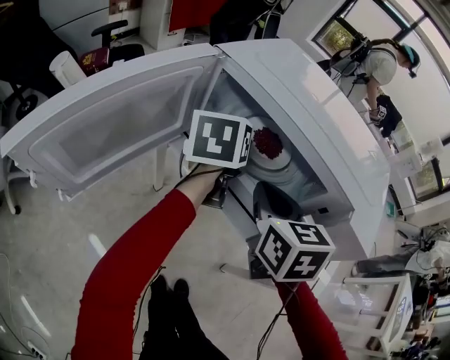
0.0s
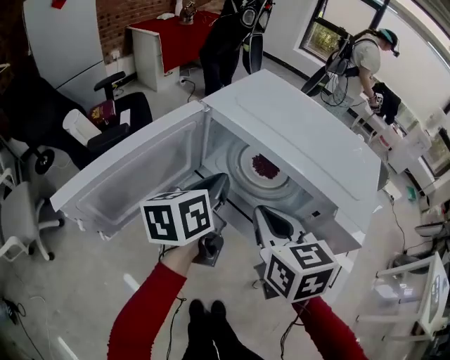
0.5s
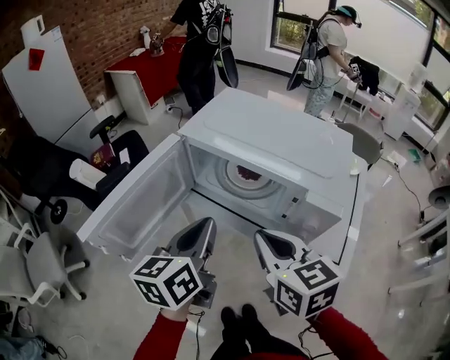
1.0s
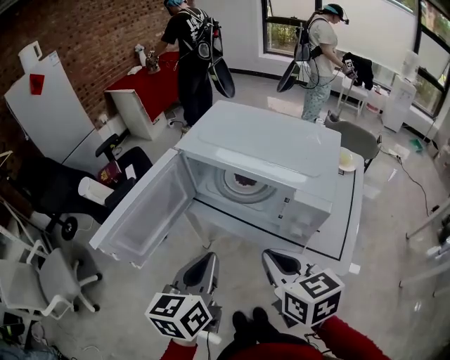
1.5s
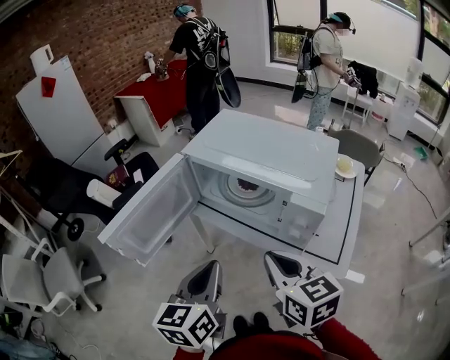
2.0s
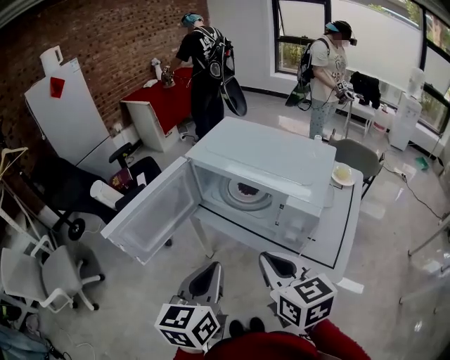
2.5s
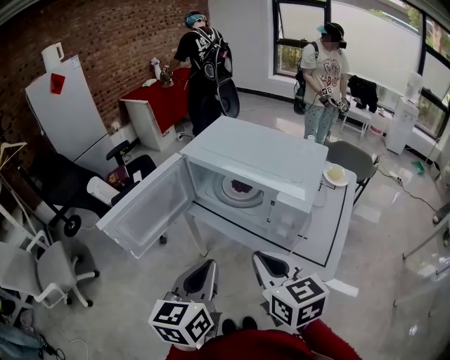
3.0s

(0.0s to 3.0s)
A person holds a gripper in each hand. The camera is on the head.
0.0s - 1.5s: The left gripper shifts approximately 25 cm backward. The right gripper goes roughly 20 cm backward and upward.
1.5s - 3.0s: The left gripper goes some 5 cm backward.

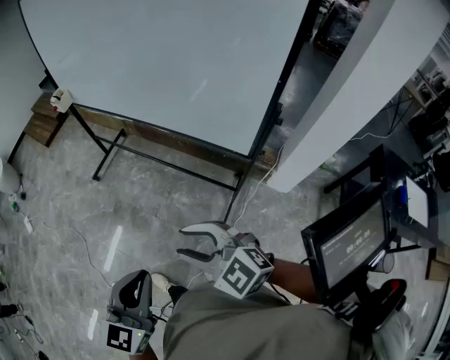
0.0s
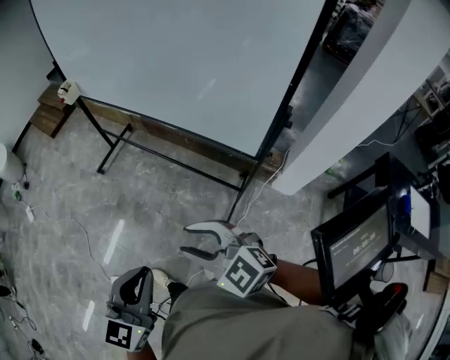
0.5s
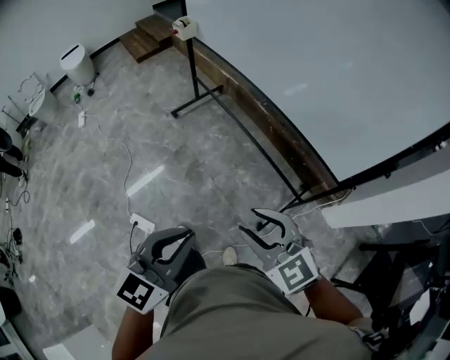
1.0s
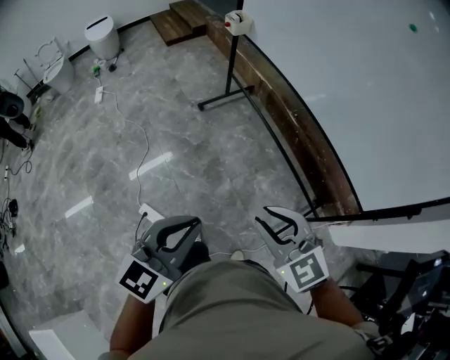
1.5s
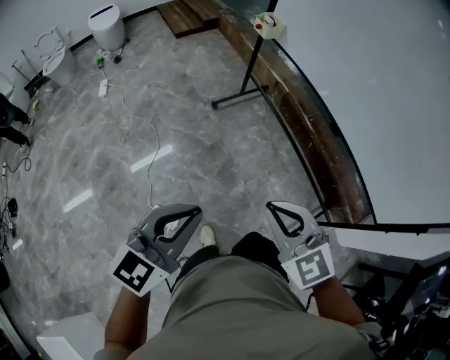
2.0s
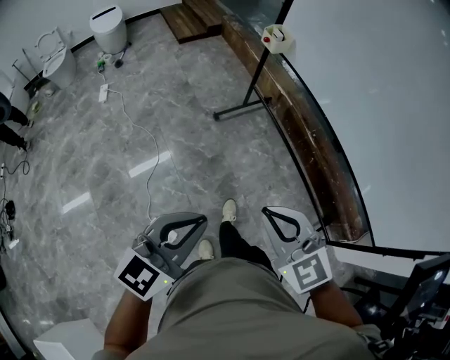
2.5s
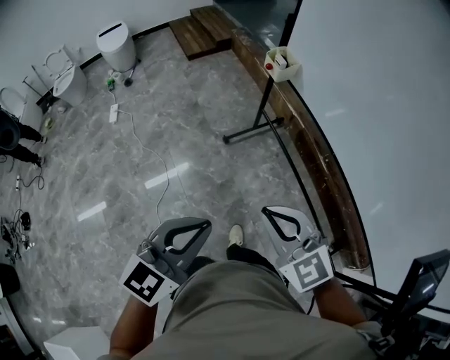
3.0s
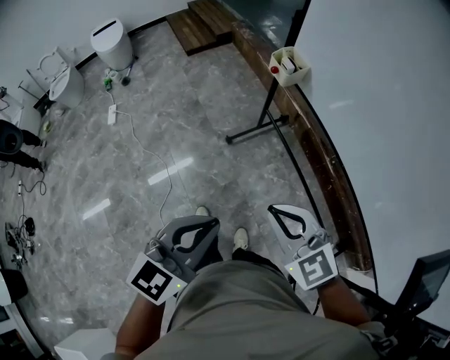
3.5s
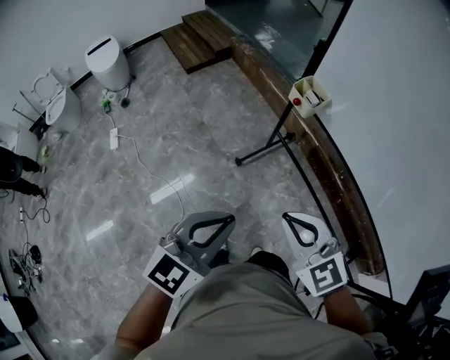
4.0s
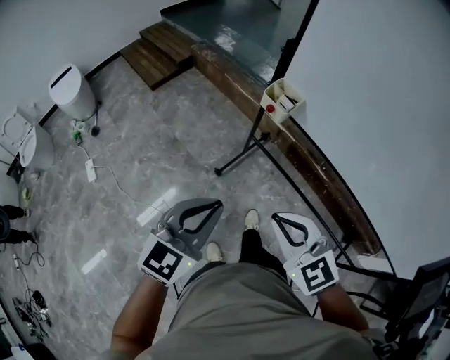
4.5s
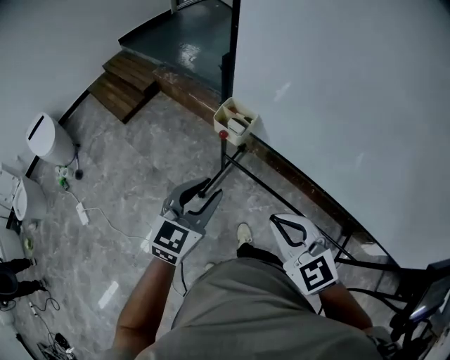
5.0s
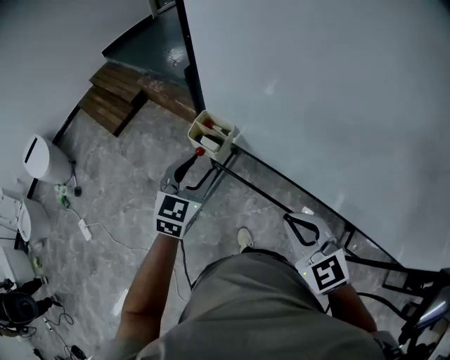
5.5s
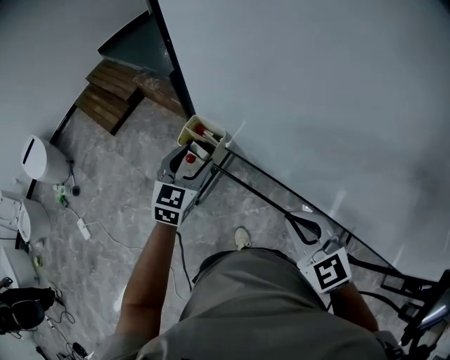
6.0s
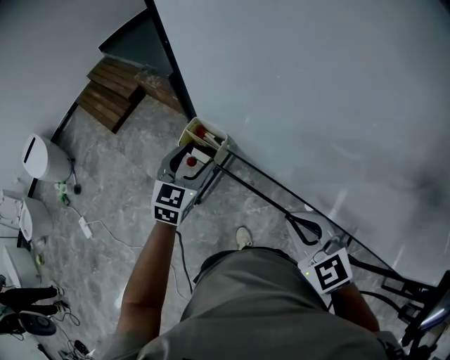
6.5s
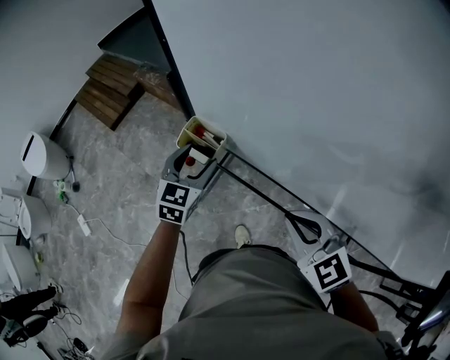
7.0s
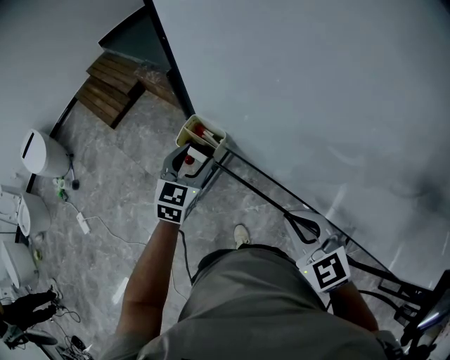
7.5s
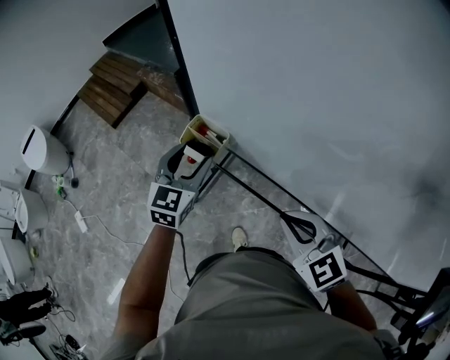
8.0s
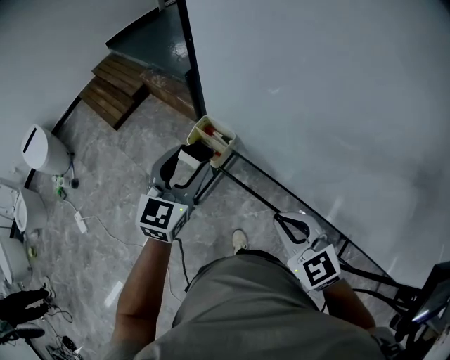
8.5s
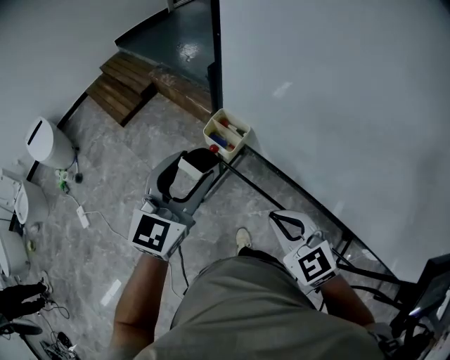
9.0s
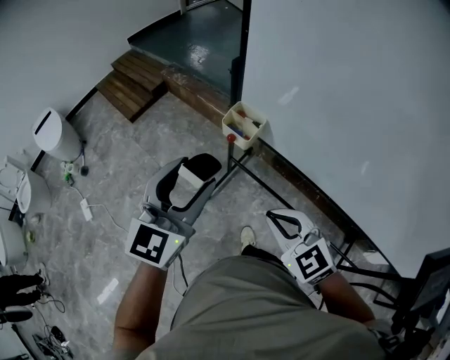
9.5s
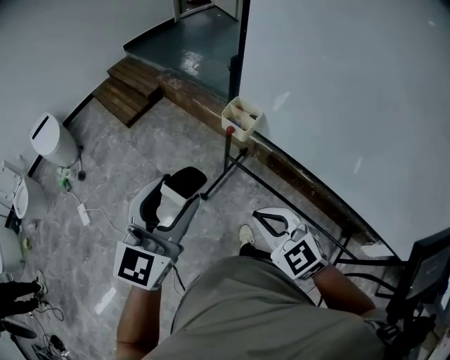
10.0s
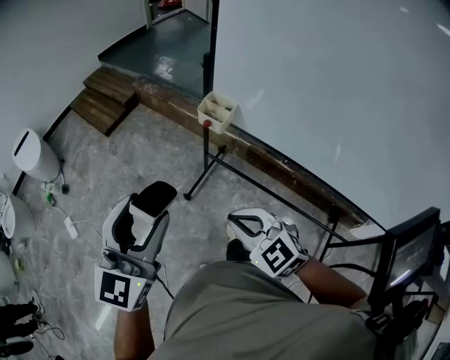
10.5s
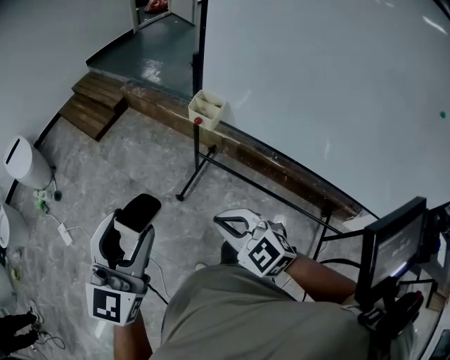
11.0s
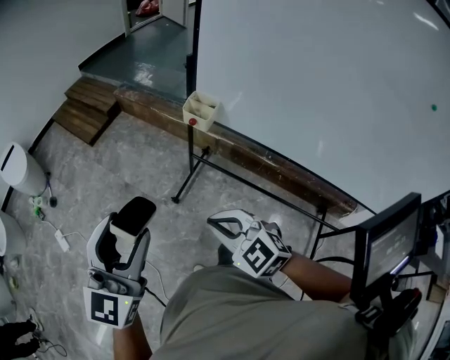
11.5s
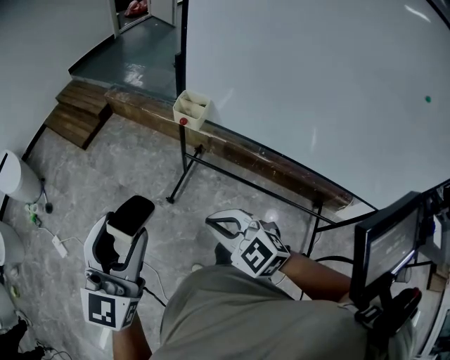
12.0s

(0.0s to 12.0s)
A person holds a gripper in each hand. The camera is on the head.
0.0s - 2.0s: The right gripper moves to the left and forward, some 35 cm, and closes its fingers; the left gripper shifts approximately 35 cm to the left.
2.0s - 4.0s: The pair of grippers is taken forward, some 40 cm.
4.0s - 6.0s: The right gripper shifts roughly 30 cm to the right and forward, and turns by some 20 degrees, while the left gripper goes some 40 cm forward, and opens its fingers.
6.0s - 8.0s: The grippers stay close to where they were, moving slightly.
8.0s - 10.0s: The left gripper goes approximately 35 cm backward, to the left and upward. The right gripper travels to the left and backward by roughly 25 cm.
10.0s - 12.0s: The left gripper is displaced backward and to the left by about 10 cm, while the right gripper heads to the left and backward, covering some 10 cm.

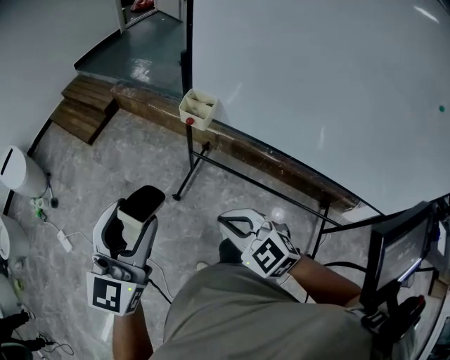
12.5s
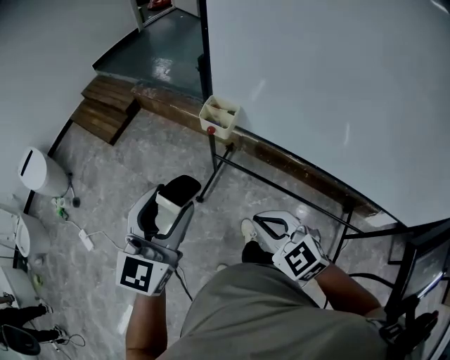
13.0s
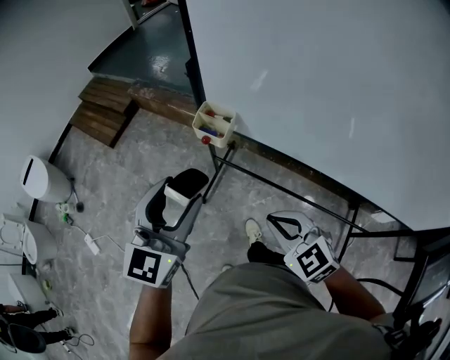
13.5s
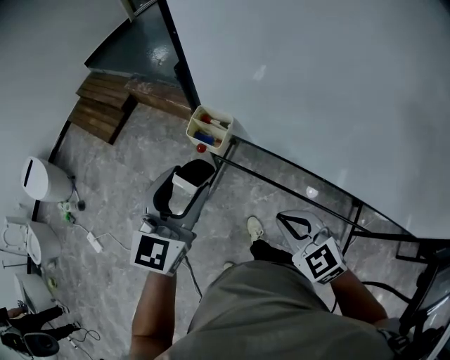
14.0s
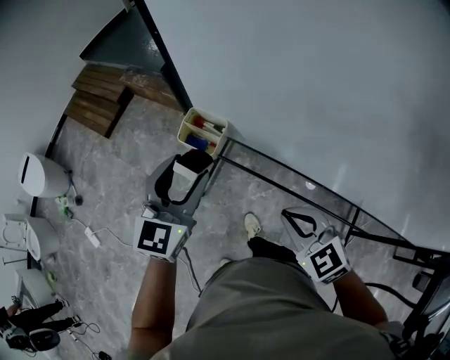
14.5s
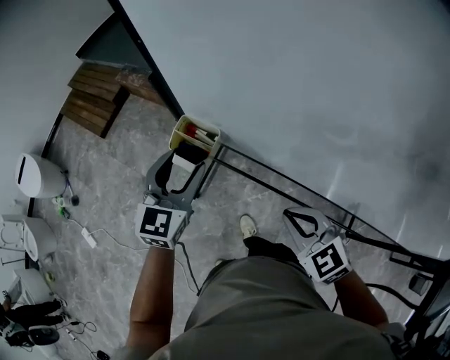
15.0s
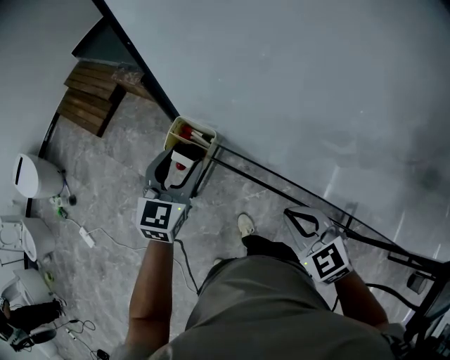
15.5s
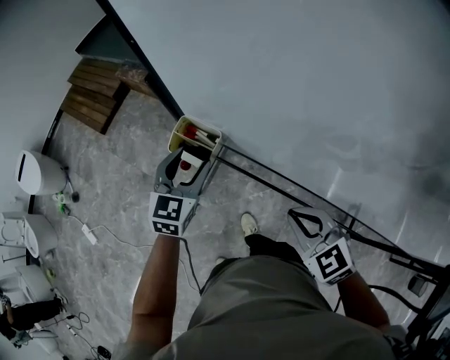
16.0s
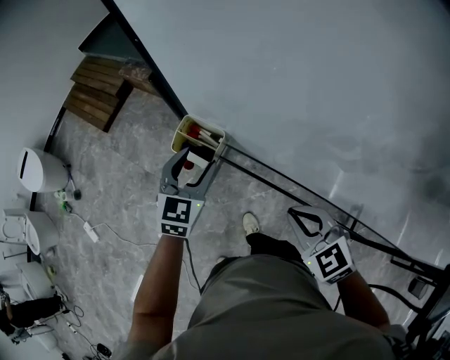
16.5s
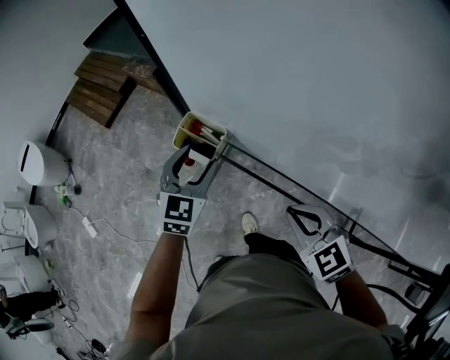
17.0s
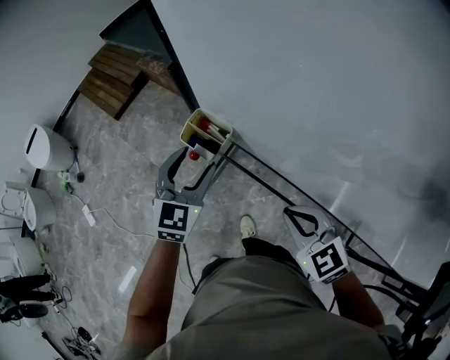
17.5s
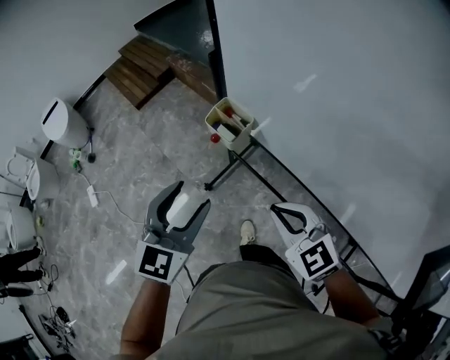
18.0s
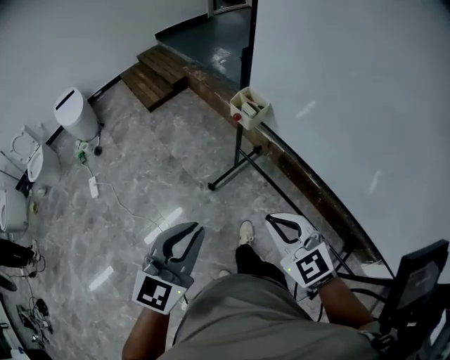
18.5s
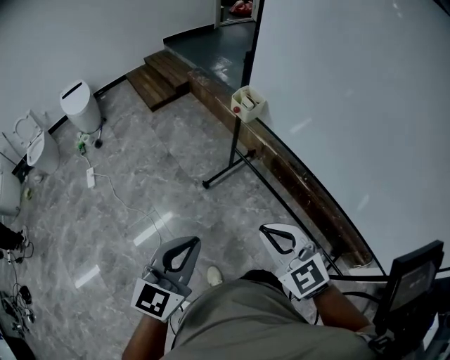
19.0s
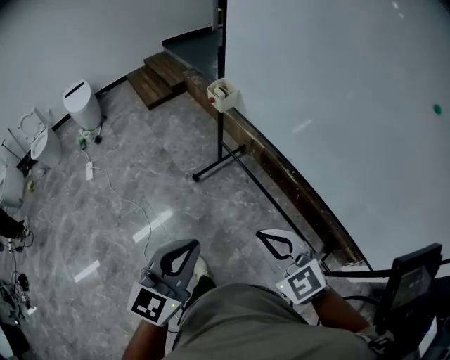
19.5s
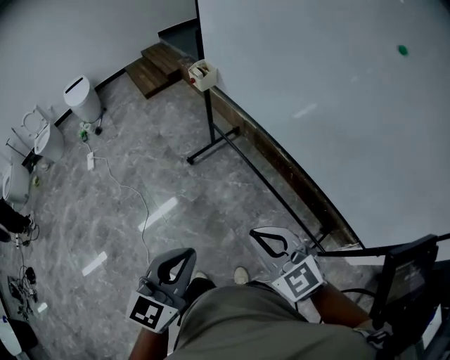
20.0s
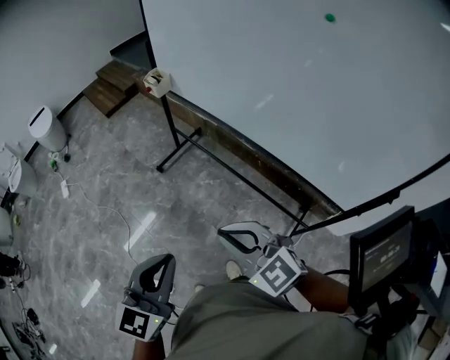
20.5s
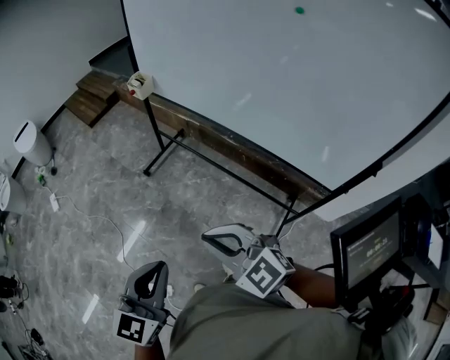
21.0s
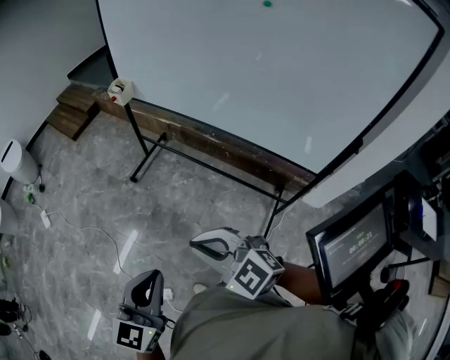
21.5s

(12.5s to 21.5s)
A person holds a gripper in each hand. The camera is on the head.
12.5s - 14.5s: The right gripper moves to the right and forward, some 25 cm. Meanwhile the left gripper shifts roughly 35 cm forward and to the right.
14.5s - 17.0s: The right gripper changes place by some 5 cm; the left gripper travels downward and forward by about 10 cm.
17.0s - 19.5s: The pair of grippers is taken backward, roughly 50 cm. The right gripper swivels about 30 degrees. The left gripper swivels approximately 20 degrees, and closes.
19.5s - 21.5s: The grippers both shift backward by approximately 20 cm.

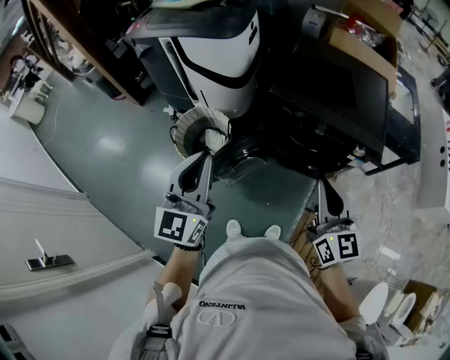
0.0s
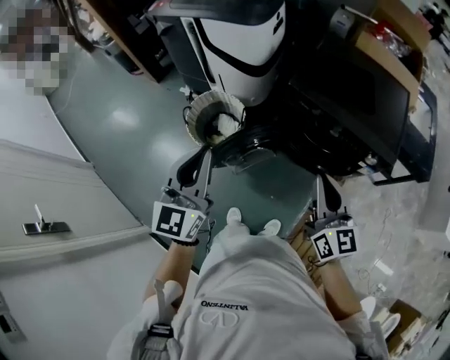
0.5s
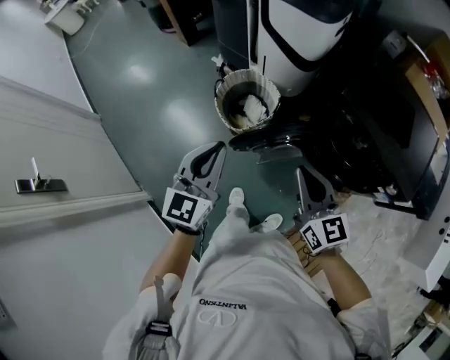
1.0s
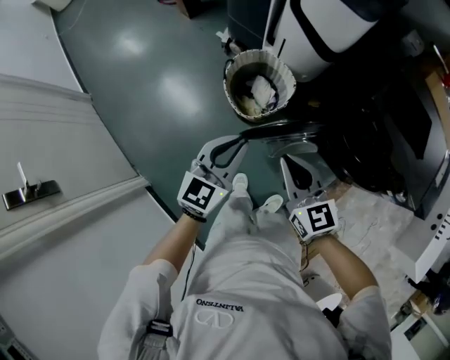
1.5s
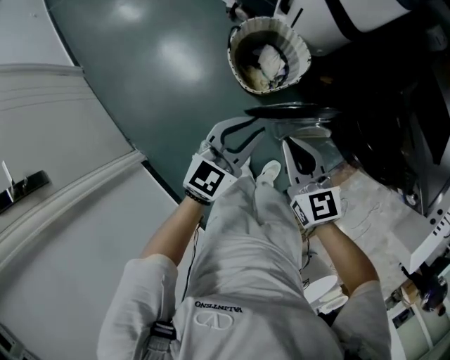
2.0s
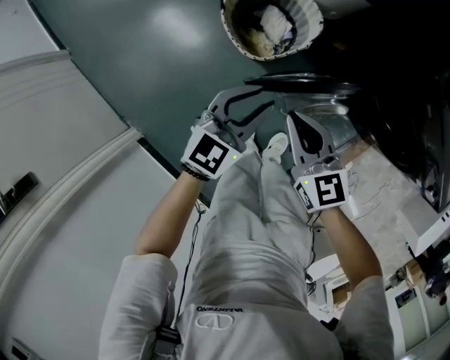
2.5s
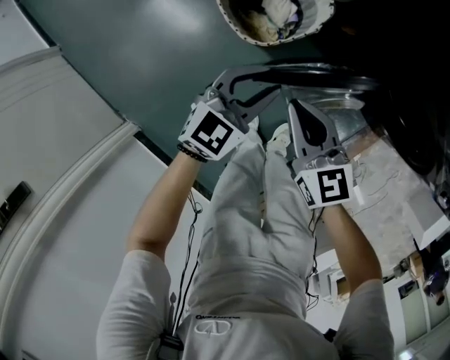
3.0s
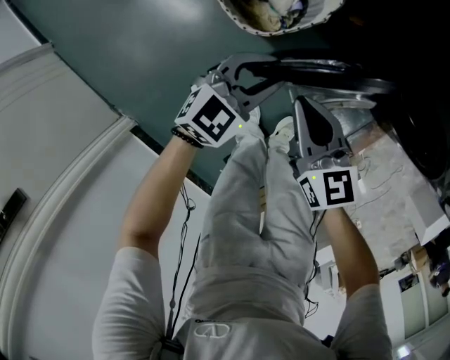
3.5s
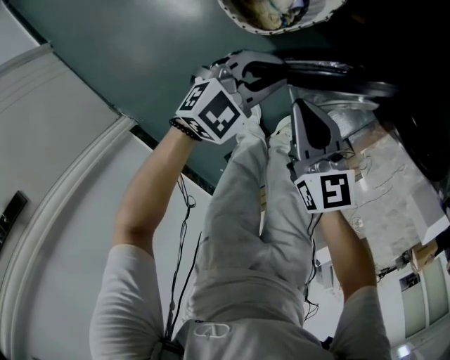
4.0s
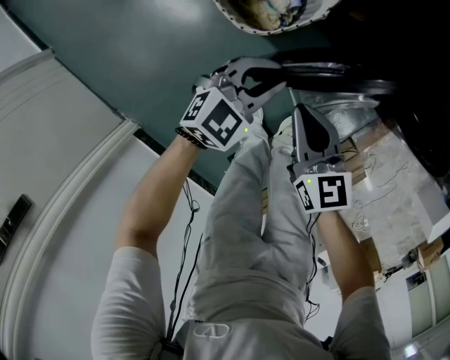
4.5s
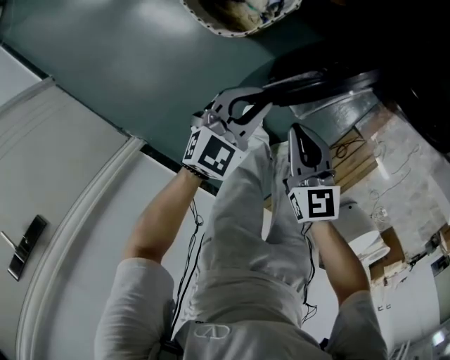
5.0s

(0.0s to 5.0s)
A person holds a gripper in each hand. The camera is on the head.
0.0s - 2.5s: The left gripper moves downward, roughly 40 cm, turns by approximately 20 degrees, and opens up, while the right gripper heads downward, to the left and forward, covering roughly 50 cm, and rotates roughly 50 degrees.
2.5s - 5.0s: The right gripper goes some 15 cm downward and to the right, and rotates roughly 20 degrees. The left gripper travels downward by about 15 cm.
